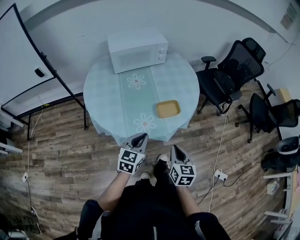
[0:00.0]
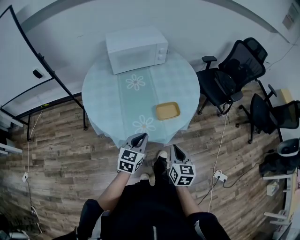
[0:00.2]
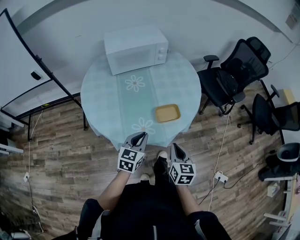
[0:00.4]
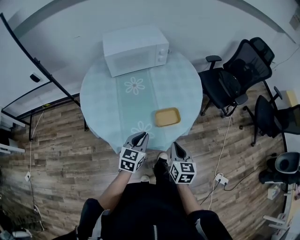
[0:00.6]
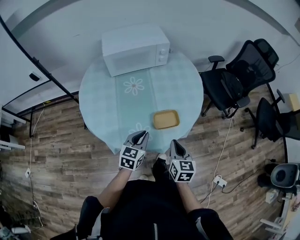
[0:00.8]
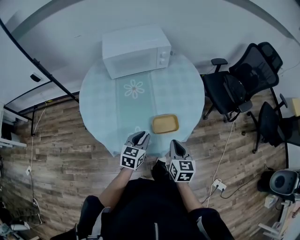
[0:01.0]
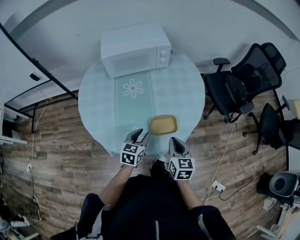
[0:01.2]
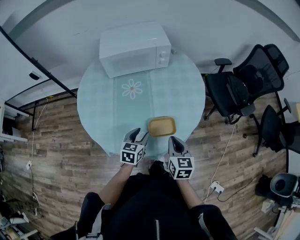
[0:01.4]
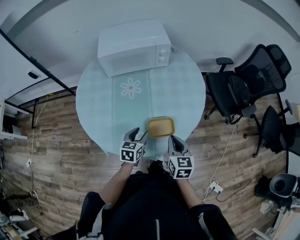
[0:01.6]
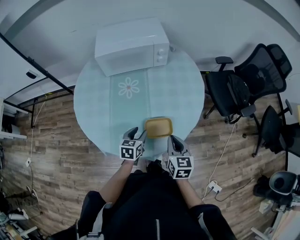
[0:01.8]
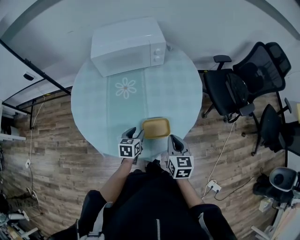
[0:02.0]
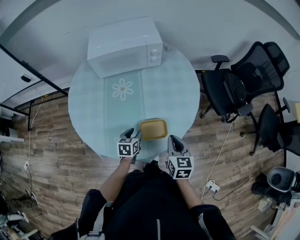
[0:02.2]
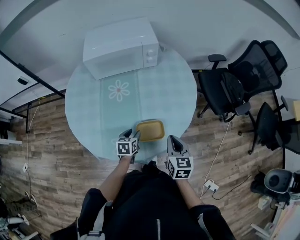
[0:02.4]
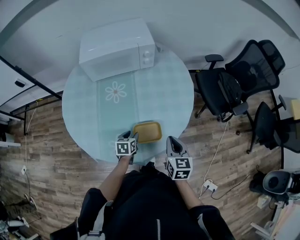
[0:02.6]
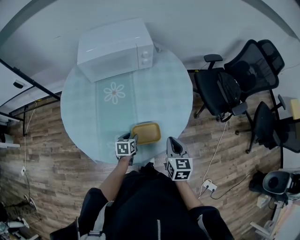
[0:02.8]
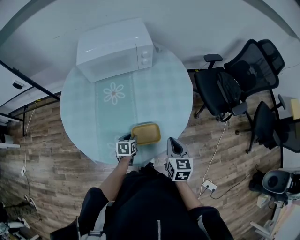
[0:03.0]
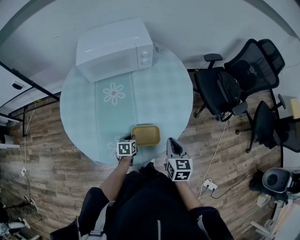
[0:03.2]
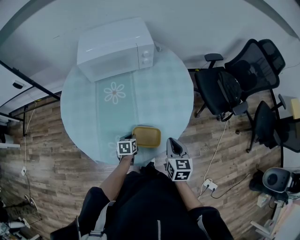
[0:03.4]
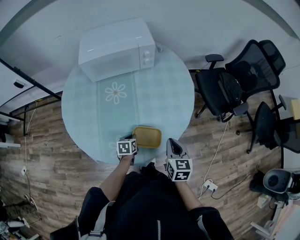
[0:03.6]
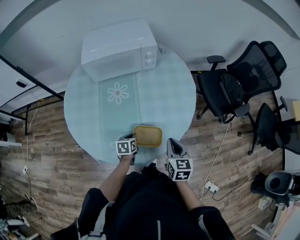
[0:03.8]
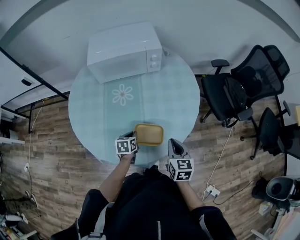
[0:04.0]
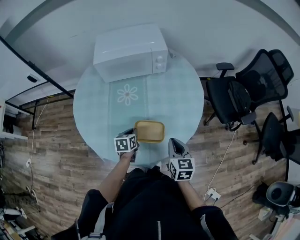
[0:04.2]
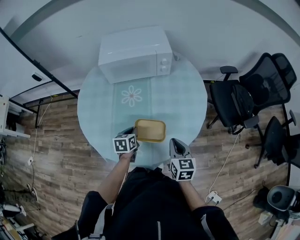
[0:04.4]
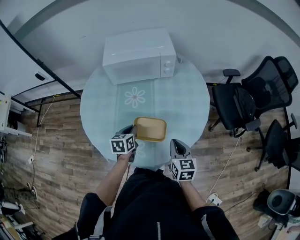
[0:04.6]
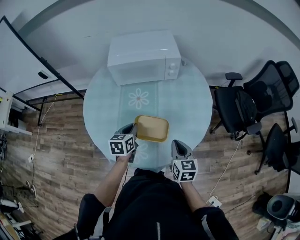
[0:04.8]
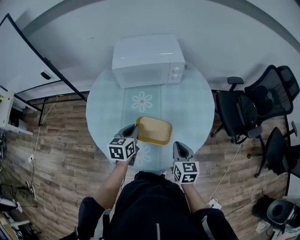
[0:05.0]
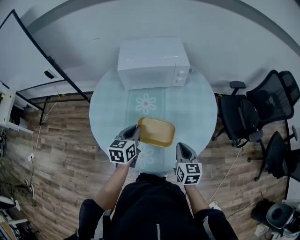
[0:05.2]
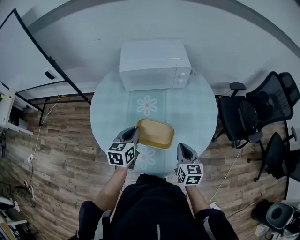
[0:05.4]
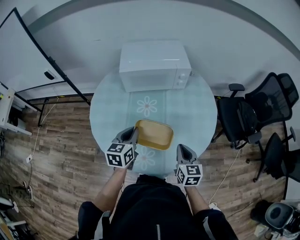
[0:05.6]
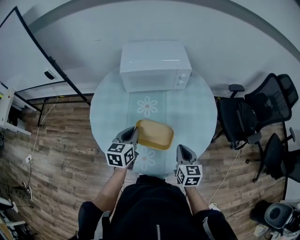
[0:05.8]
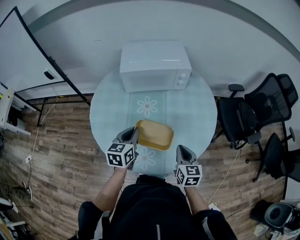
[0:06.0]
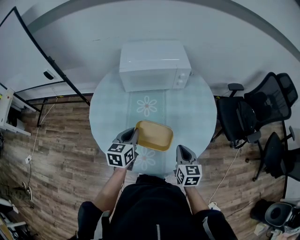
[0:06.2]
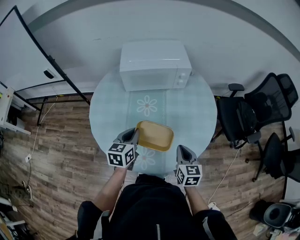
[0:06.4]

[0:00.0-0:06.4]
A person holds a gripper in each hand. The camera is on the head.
0:00.0 to 0:01.6: The right gripper moves forward, approximately 25 cm; the left gripper travels forward and downward by roughly 25 cm, swivels roughly 20 degrees, and opens its fingers.
0:01.6 to 0:03.2: The right gripper shifts about 5 cm to the right; the left gripper heads downward, covering some 15 cm, rotates roughly 20 degrees, and closes its fingers.
0:03.2 to 0:04.8: The left gripper heads upward and to the left, covering about 20 cm, and swivels roughly 20 degrees; the right gripper travels to the left by some 5 cm.
0:04.8 to 0:06.4: The left gripper is displaced upward by about 5 cm.

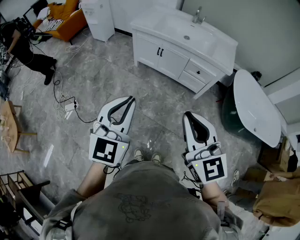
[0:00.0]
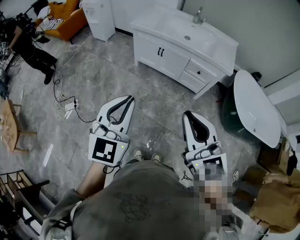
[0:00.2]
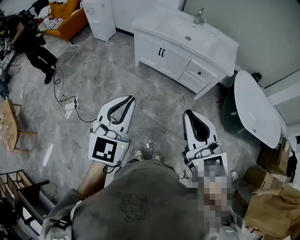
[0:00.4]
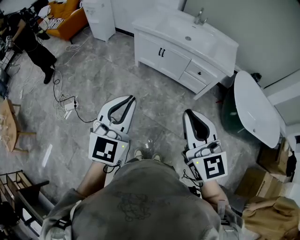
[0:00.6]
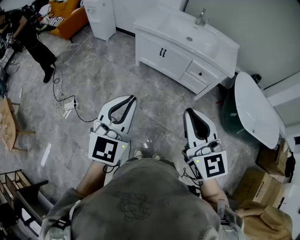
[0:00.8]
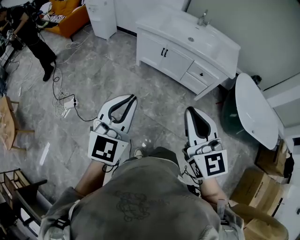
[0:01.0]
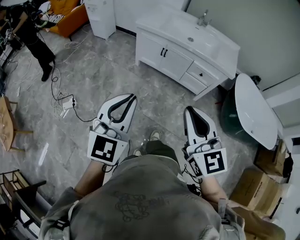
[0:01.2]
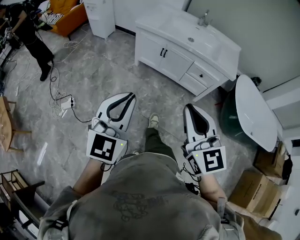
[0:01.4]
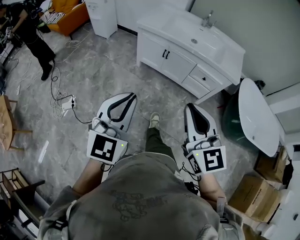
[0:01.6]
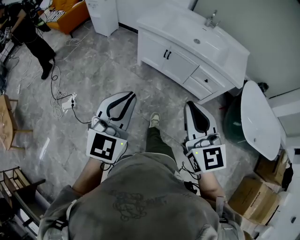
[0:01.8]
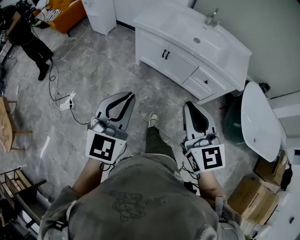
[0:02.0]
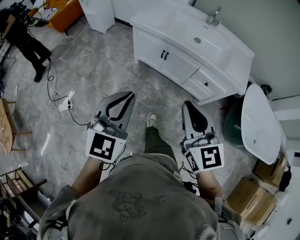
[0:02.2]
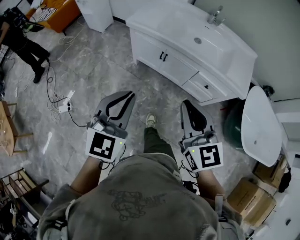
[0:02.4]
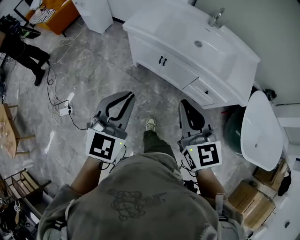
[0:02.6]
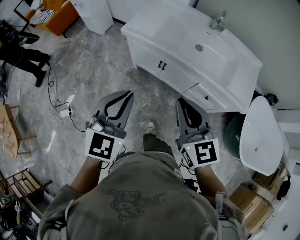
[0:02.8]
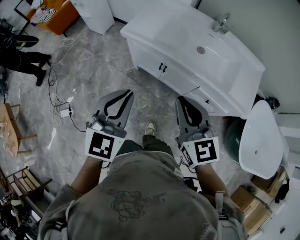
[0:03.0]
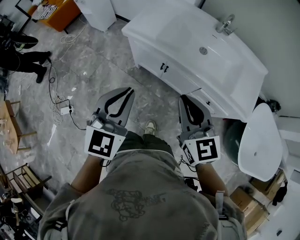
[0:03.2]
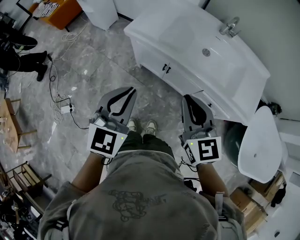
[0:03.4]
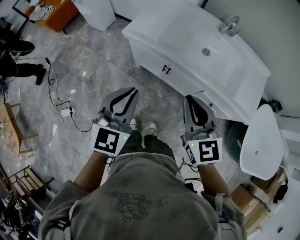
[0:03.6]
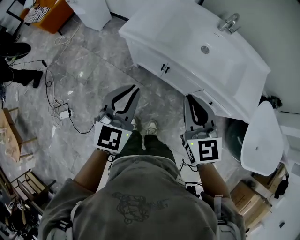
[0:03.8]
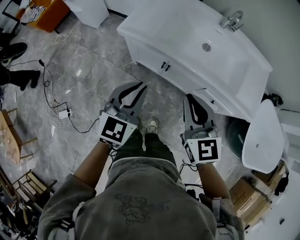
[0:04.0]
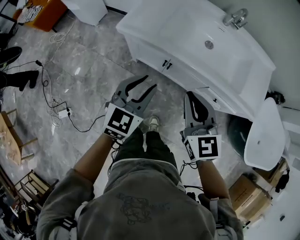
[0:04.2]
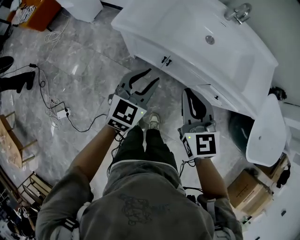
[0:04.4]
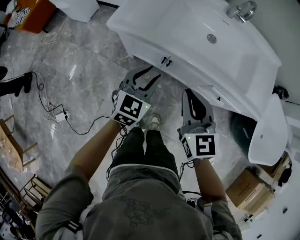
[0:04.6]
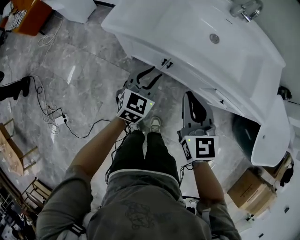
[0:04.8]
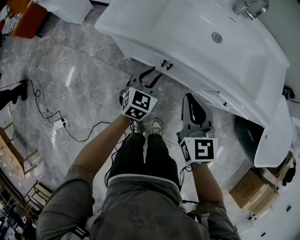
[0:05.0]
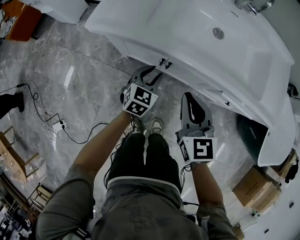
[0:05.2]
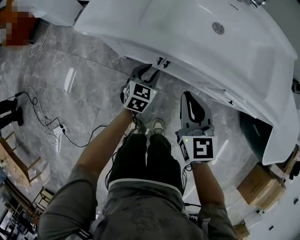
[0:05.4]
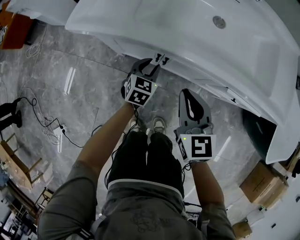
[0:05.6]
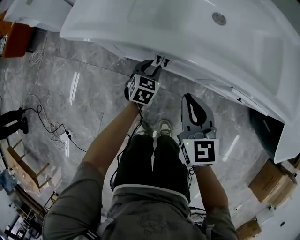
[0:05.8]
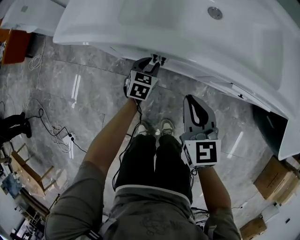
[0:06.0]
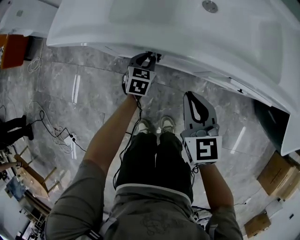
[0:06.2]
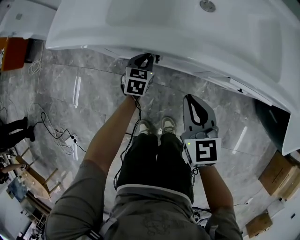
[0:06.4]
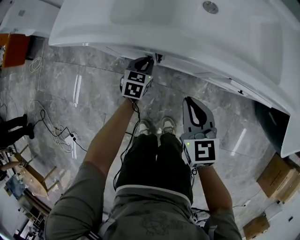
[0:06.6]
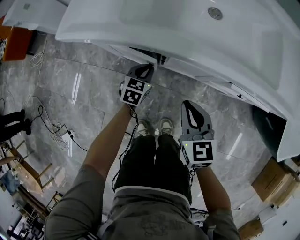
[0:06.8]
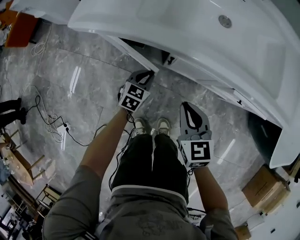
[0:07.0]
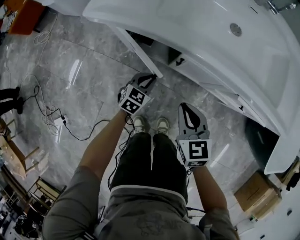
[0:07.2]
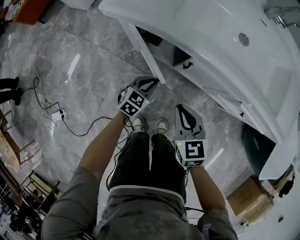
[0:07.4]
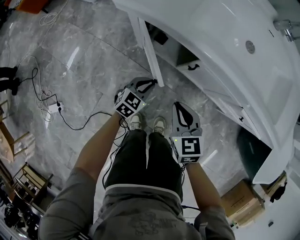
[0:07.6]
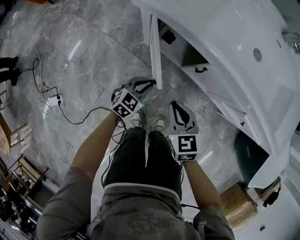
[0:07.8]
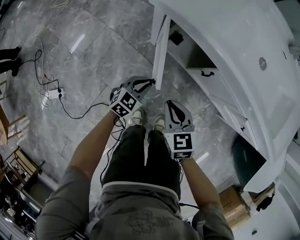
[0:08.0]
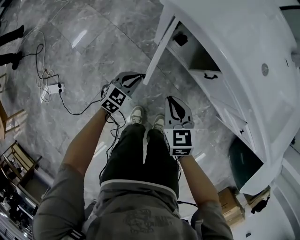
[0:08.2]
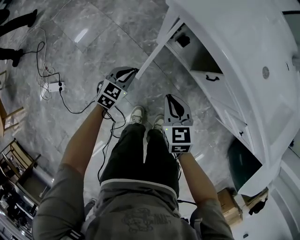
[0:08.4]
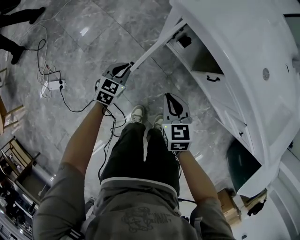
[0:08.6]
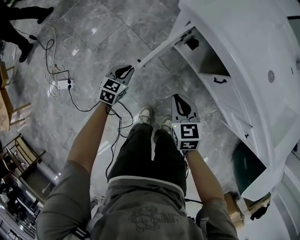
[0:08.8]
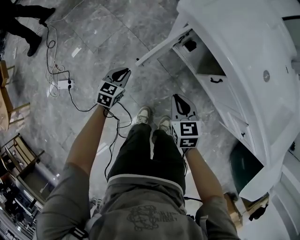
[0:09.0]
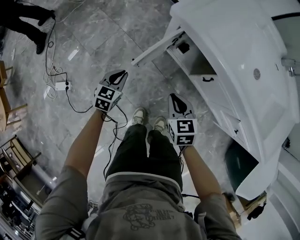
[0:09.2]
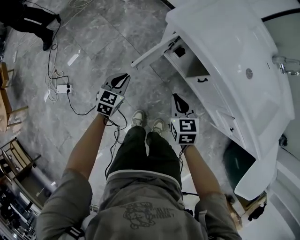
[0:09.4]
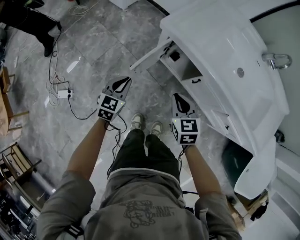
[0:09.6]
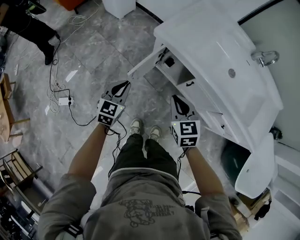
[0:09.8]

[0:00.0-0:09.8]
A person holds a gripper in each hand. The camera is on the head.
0:00.0 to 0:01.4: The two grippers go approximately 5 cm to the left.
0:01.4 to 0:02.8: Both grippers move forward, some 35 cm.
0:02.8 to 0:04.2: Both grippers move forward and downward, approximately 20 cm. The left gripper opens its fingers.
0:04.2 to 0:05.6: The right gripper travels downward by about 25 cm. The left gripper is displaced downward and forward by some 40 cm.
0:05.6 to 0:07.0: Both grippers move downward, about 5 cm. The left gripper closes.
0:07.0 to 0:08.4: The grippers both shift to the left by about 25 cm. The right gripper rotates approximately 20 degrees.
0:08.4 to 0:09.8: The two grippers go some 25 cm upward.

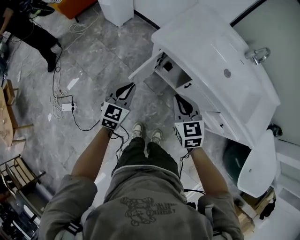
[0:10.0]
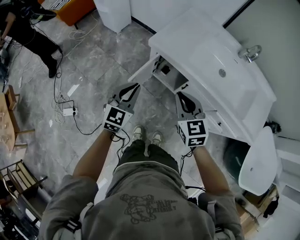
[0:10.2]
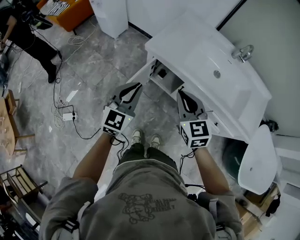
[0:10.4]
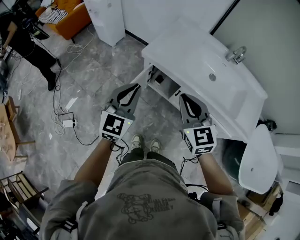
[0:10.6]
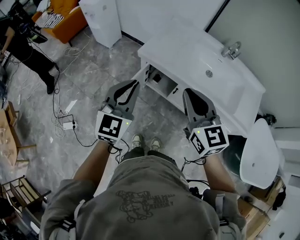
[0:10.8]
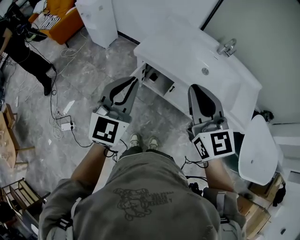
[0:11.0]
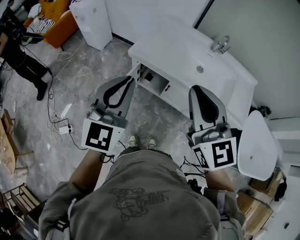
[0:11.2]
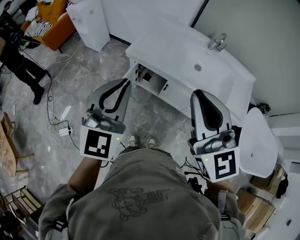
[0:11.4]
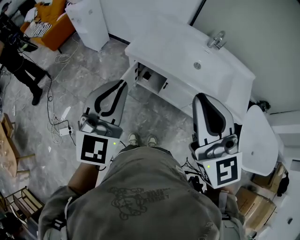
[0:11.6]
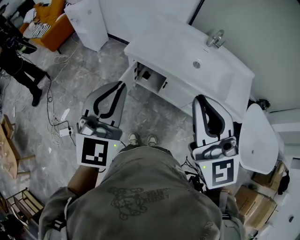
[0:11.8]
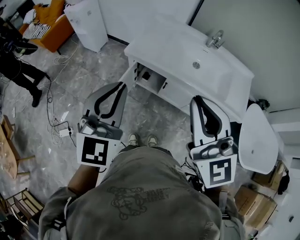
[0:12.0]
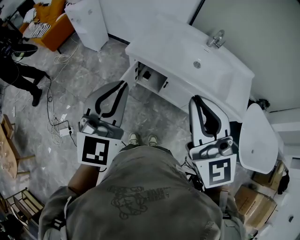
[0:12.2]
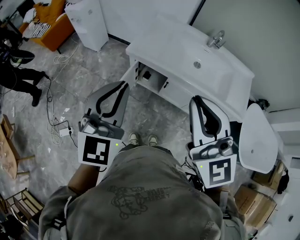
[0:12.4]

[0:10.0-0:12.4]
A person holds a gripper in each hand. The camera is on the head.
0:10.0 to 0:11.2: The grippers both shift upward by approximately 30 cm. The right gripper tilts its fingers about 30 degrees upward, while the left gripper swivels some 20 degrees.
0:11.2 to 0:12.4: The right gripper shifts some 5 cm backward. The left gripper changes place by about 5 cm.

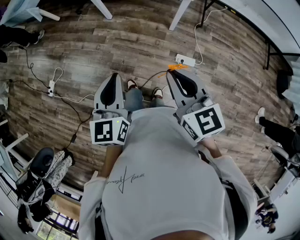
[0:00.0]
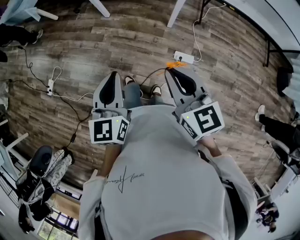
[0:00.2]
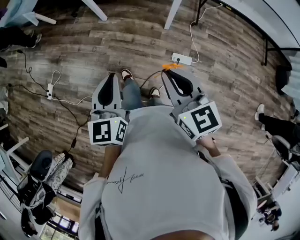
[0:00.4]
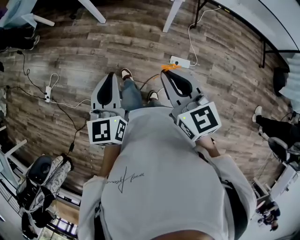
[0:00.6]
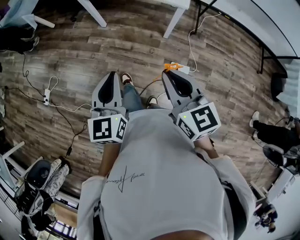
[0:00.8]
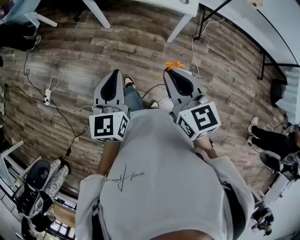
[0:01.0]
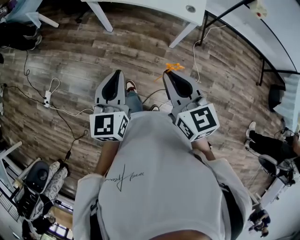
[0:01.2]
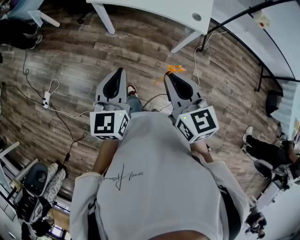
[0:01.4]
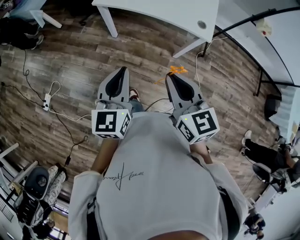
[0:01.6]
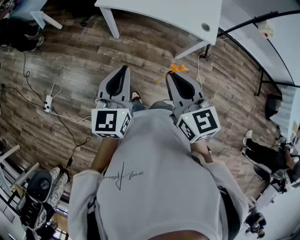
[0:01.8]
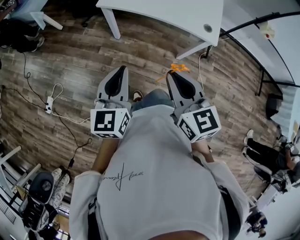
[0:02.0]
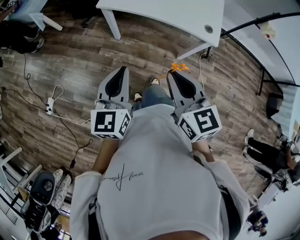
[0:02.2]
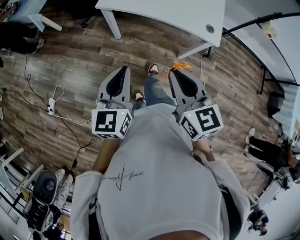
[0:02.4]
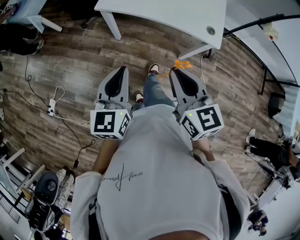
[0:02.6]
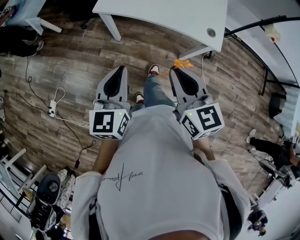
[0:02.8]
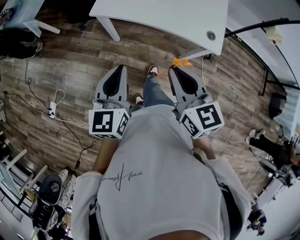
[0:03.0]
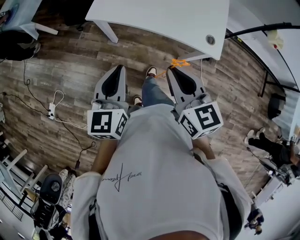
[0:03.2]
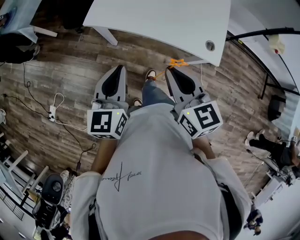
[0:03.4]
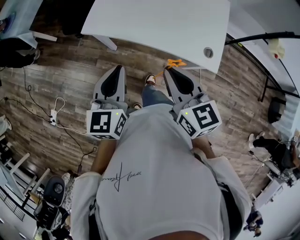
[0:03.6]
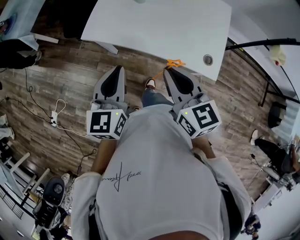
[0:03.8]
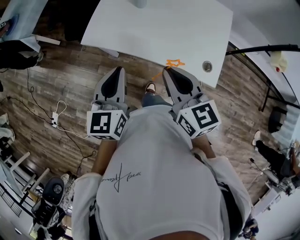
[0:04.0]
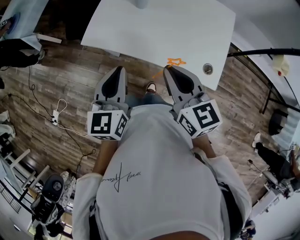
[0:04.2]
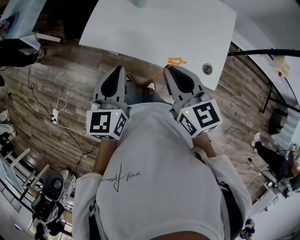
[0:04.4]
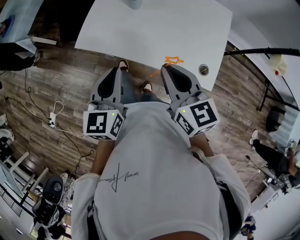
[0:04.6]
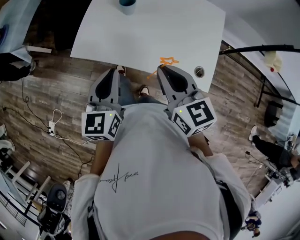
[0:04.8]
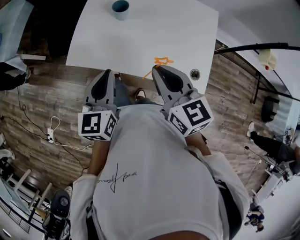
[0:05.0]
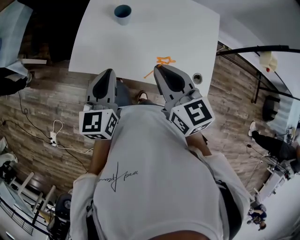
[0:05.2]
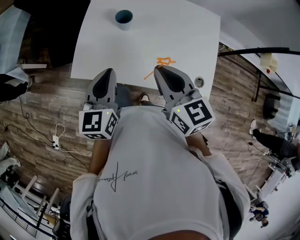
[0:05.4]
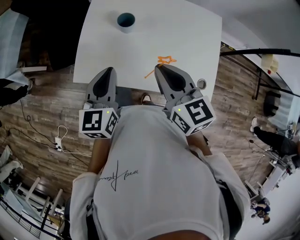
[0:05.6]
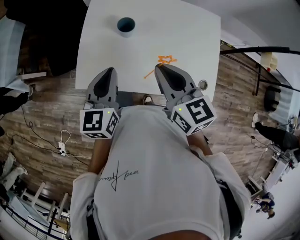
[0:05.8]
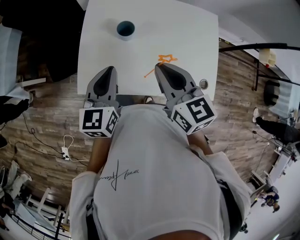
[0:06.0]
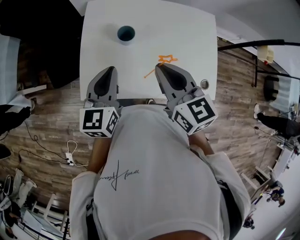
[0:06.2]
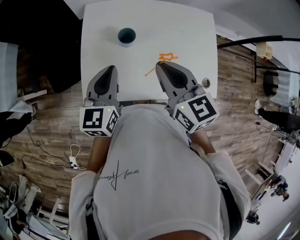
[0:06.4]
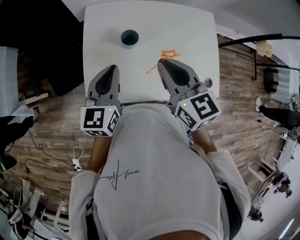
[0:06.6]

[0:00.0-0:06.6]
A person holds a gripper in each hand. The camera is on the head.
0:00.0 to 0:01.6: Both grippers travel together forward, roughly 20 cm.
0:01.6 to 0:03.2: Both grippers move forward, approximately 15 cm.
0:03.2 to 0:05.0: The two grippers go approximately 20 cm forward.
0:05.0 to 0:06.6: The right gripper moves forward and to the left, roughly 15 cm. Meanwhile the left gripper travels forward by approximately 20 cm.
